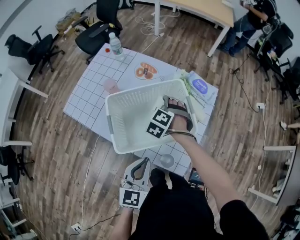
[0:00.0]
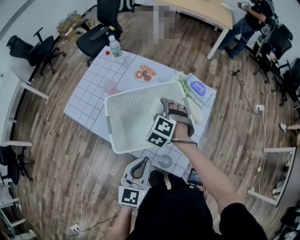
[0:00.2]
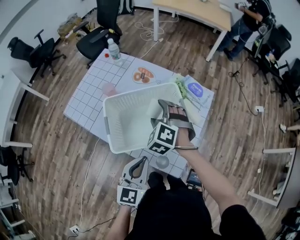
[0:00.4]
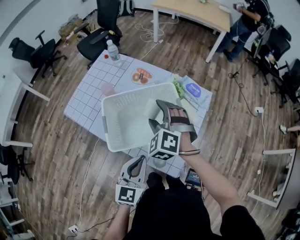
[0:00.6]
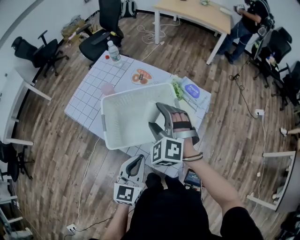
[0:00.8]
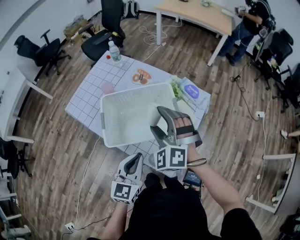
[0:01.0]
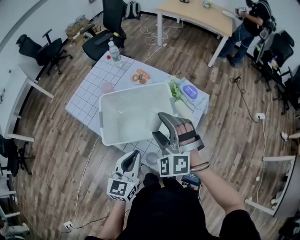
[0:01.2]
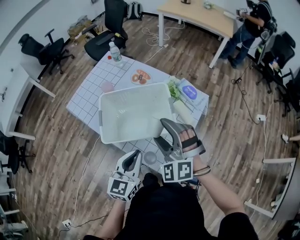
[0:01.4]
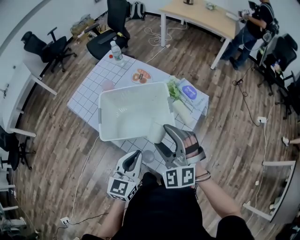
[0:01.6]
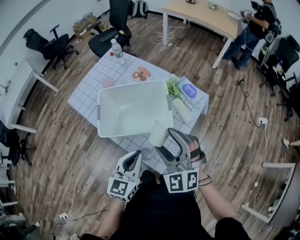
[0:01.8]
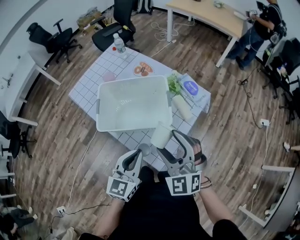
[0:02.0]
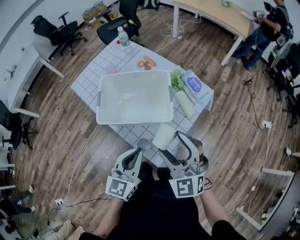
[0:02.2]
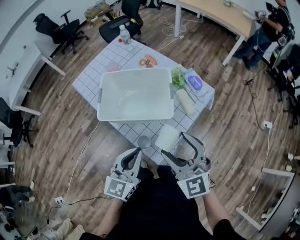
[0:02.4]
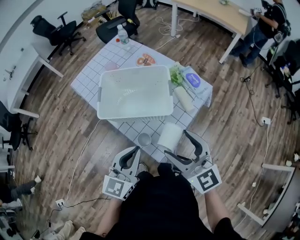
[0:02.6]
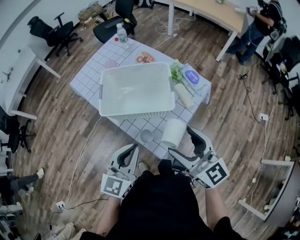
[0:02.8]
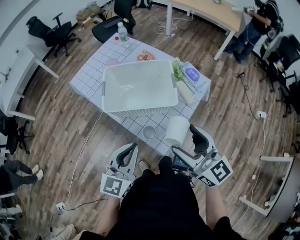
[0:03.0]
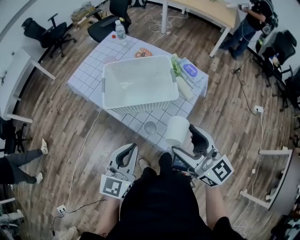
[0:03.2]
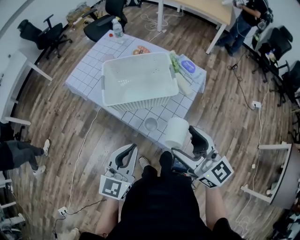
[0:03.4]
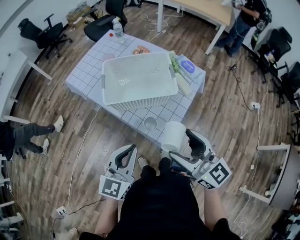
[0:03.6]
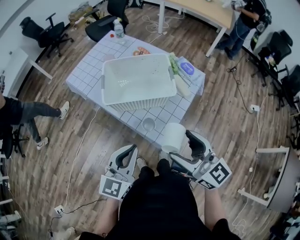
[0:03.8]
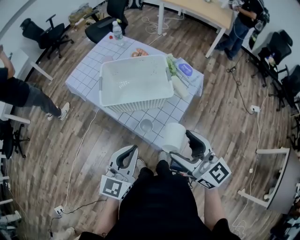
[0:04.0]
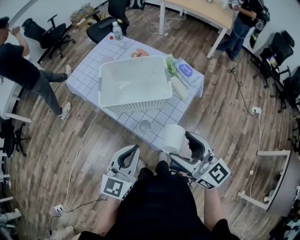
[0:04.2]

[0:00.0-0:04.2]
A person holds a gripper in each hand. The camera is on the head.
0.0 to 1.4 s: The right gripper goes about 25 cm upward and backward, and tilts its fingers about 40 degrees upward; the left gripper moves to the right, roughly 5 cm.
1.4 to 2.8 s: The right gripper is displaced backward and to the right by roughly 15 cm, and twists approximately 60 degrees clockwise, seen from behind. Meanwhile the left gripper shifts approximately 10 cm backward.
2.8 to 4.2 s: The two grippers go roughly 5 cm backward.

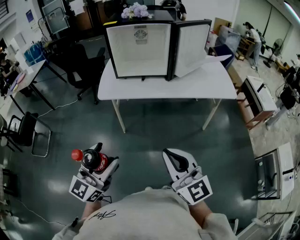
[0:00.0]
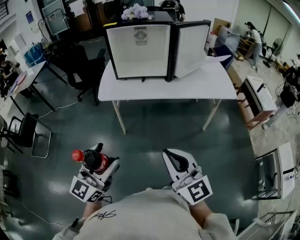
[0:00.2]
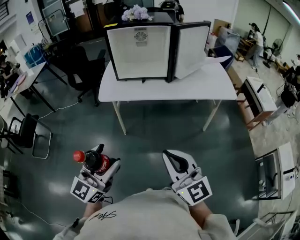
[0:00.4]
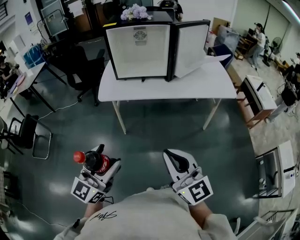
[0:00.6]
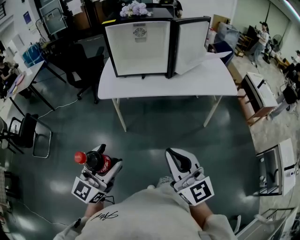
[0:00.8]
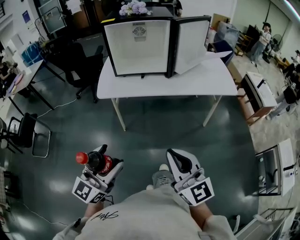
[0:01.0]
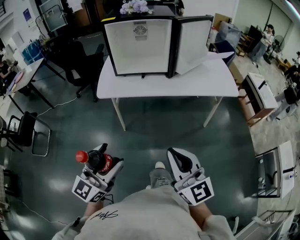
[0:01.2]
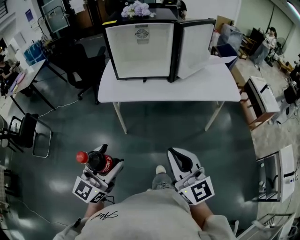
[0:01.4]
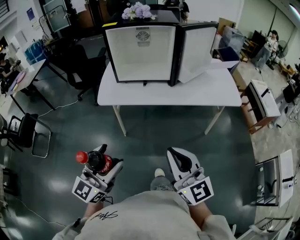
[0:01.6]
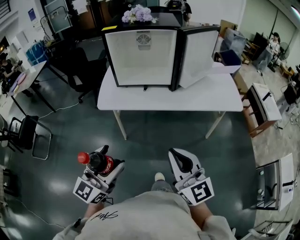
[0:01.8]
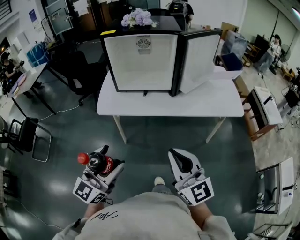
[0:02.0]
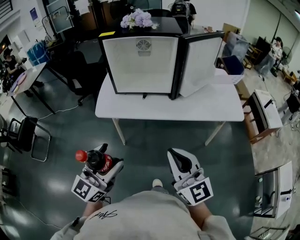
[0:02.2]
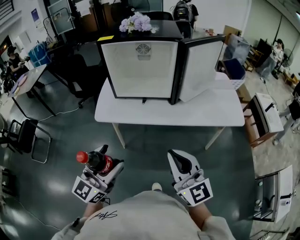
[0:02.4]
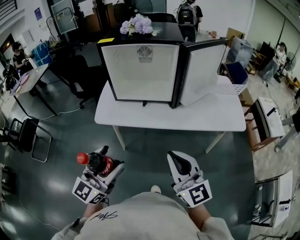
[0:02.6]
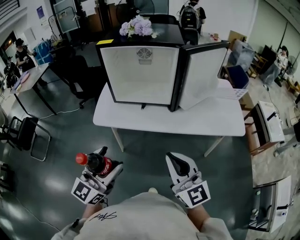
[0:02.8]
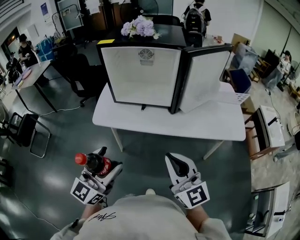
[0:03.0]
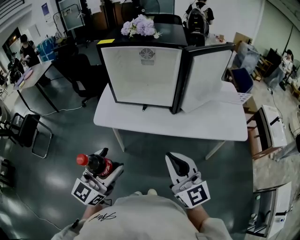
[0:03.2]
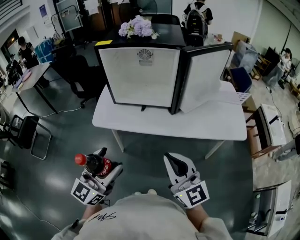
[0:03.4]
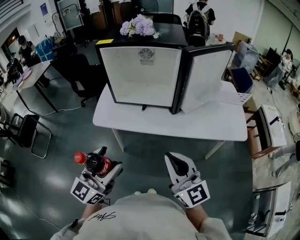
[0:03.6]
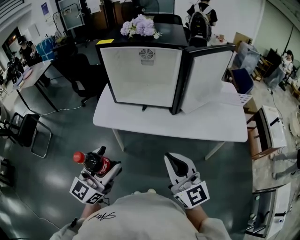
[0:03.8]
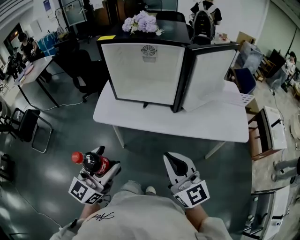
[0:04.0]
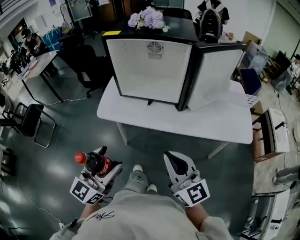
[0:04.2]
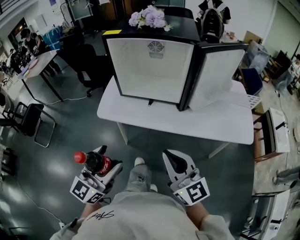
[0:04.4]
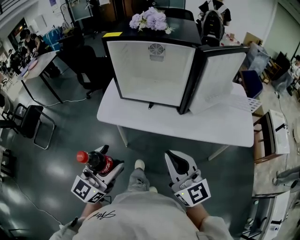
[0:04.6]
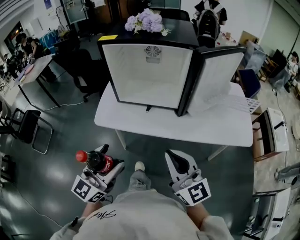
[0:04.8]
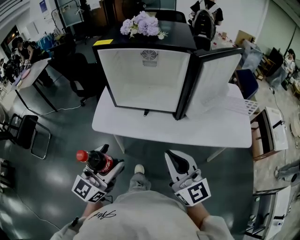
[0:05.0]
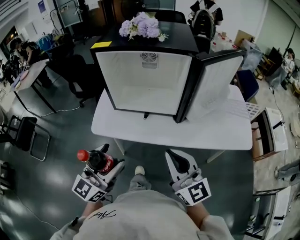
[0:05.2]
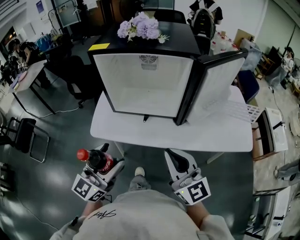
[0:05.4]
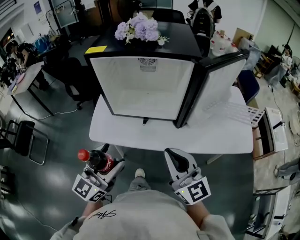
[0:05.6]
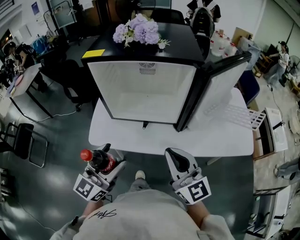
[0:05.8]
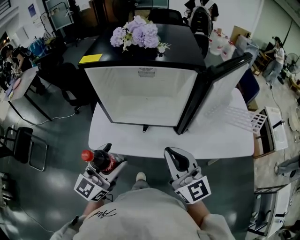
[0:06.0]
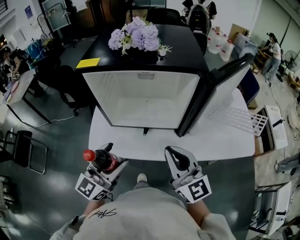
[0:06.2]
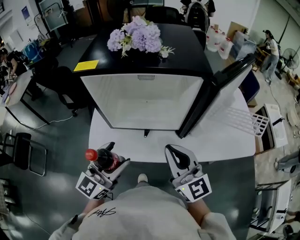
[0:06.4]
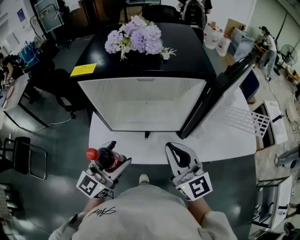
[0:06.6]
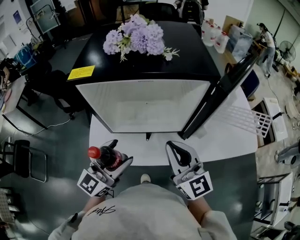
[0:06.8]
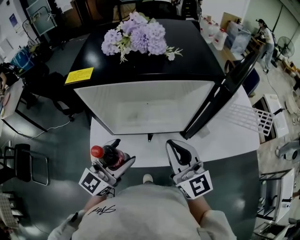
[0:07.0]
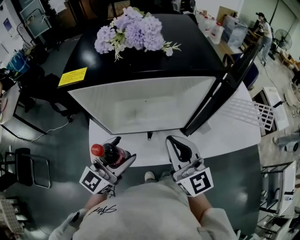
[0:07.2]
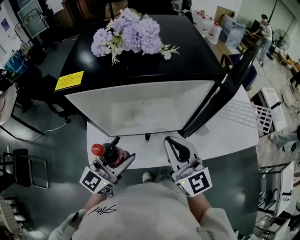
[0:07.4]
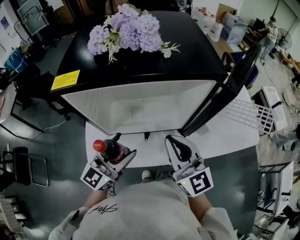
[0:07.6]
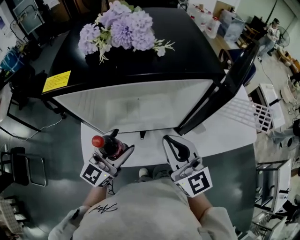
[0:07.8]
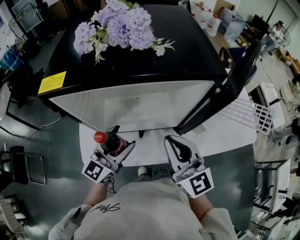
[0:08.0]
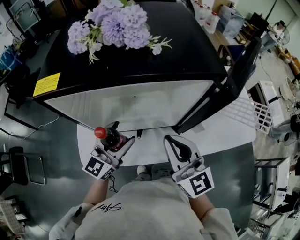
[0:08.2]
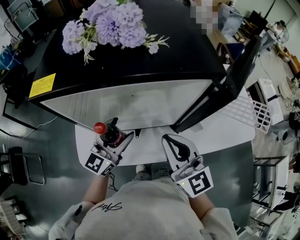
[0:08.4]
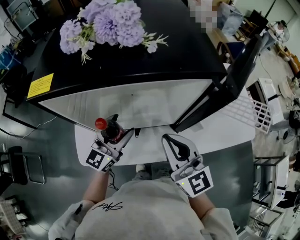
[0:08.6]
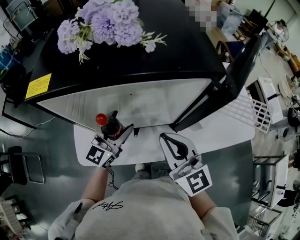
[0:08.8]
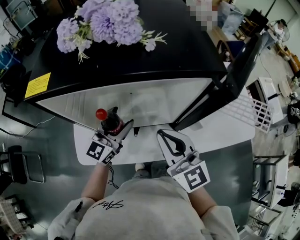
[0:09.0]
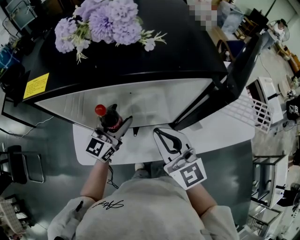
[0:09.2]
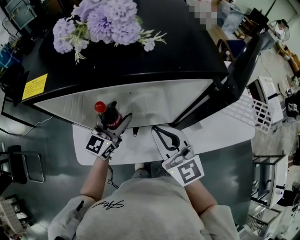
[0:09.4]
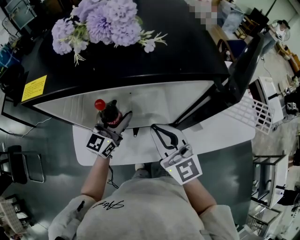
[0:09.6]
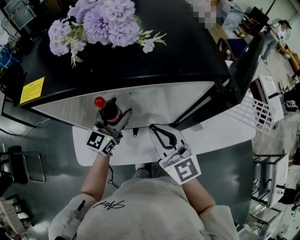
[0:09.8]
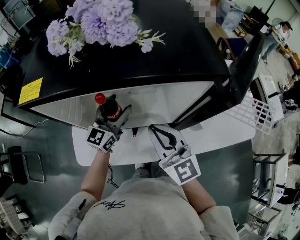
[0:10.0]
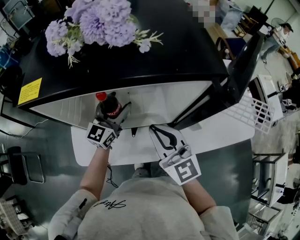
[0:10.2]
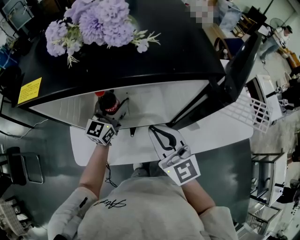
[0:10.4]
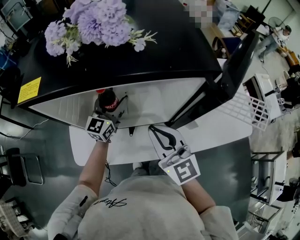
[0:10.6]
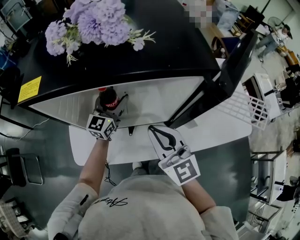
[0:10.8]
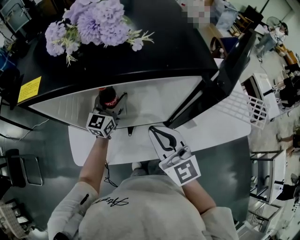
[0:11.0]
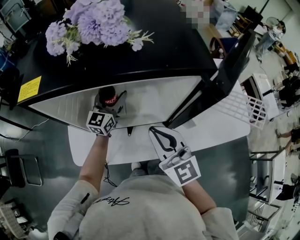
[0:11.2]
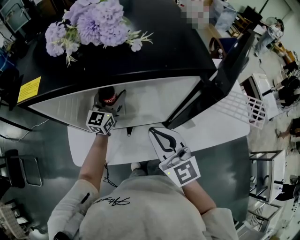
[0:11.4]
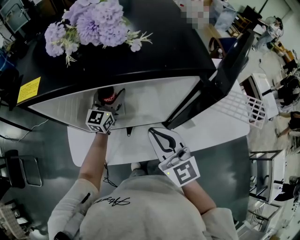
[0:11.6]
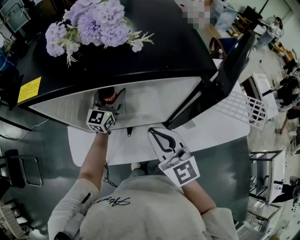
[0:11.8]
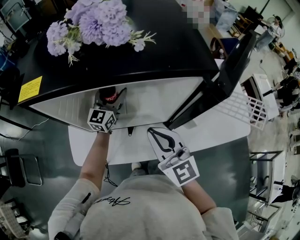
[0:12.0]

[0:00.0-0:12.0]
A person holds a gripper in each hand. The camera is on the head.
0.0 to 1.6 s: The two grippers go approximately 5 cm forward.
1.6 to 3.0 s: The two grippers go roughly 15 cm forward.
3.0 to 4.4 s: The grippers move only a little.
4.4 to 6.0 s: The two grippers go approximately 20 cm forward.
6.0 to 7.6 s: Both grippers move forward, some 15 cm.
7.6 to 9.0 s: The left gripper moves forward and downward, some 15 cm.
9.0 to 10.4 s: The left gripper heads forward, covering roughly 10 cm.
10.4 to 12.0 s: The left gripper shifts by roughly 5 cm.

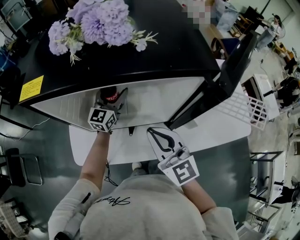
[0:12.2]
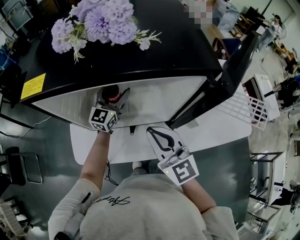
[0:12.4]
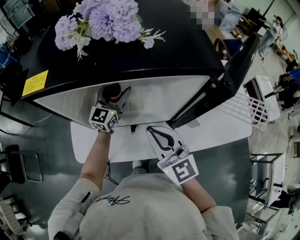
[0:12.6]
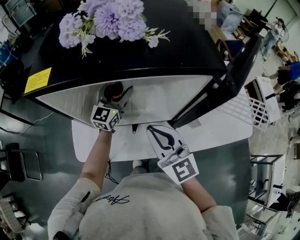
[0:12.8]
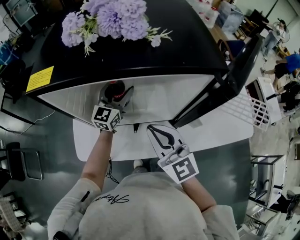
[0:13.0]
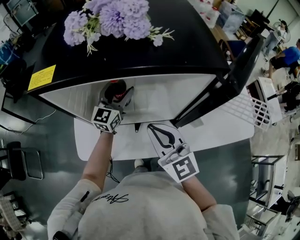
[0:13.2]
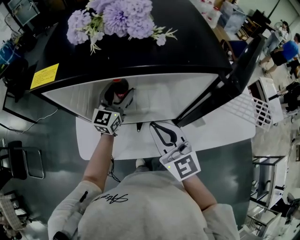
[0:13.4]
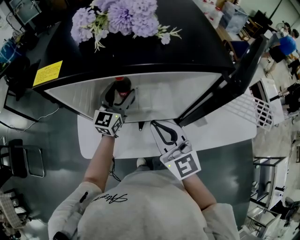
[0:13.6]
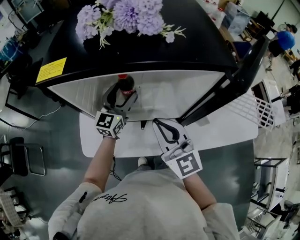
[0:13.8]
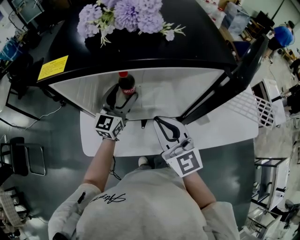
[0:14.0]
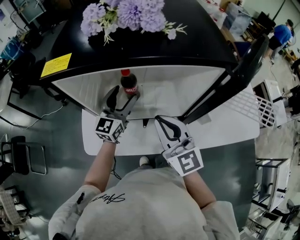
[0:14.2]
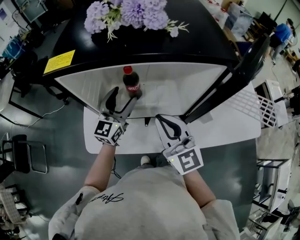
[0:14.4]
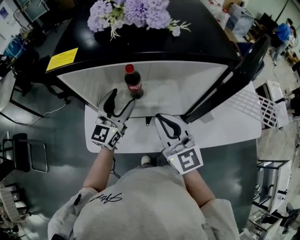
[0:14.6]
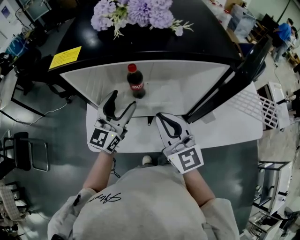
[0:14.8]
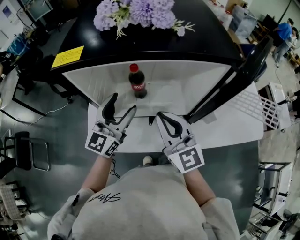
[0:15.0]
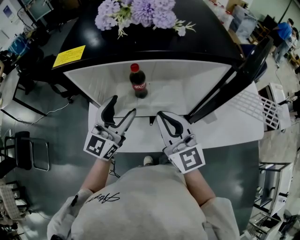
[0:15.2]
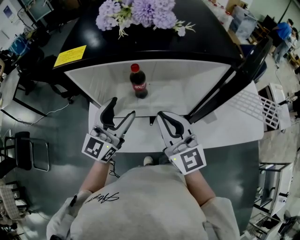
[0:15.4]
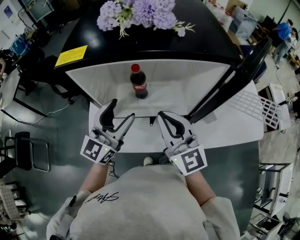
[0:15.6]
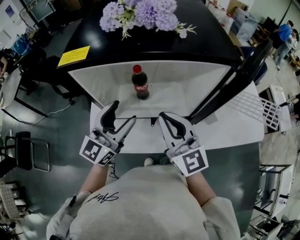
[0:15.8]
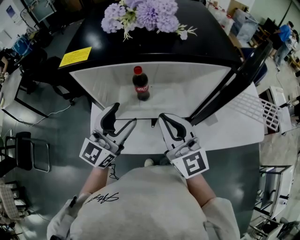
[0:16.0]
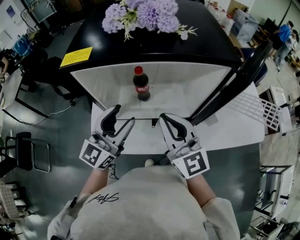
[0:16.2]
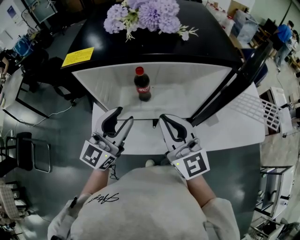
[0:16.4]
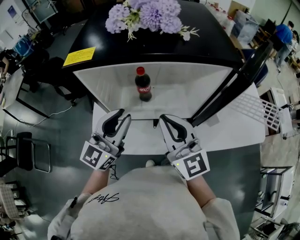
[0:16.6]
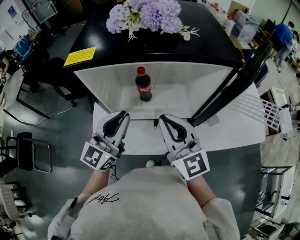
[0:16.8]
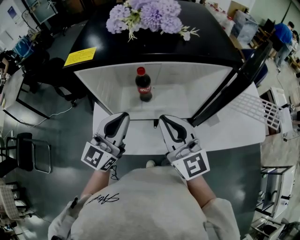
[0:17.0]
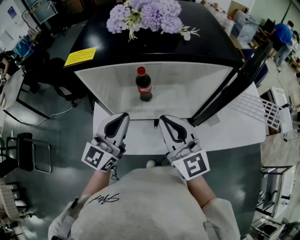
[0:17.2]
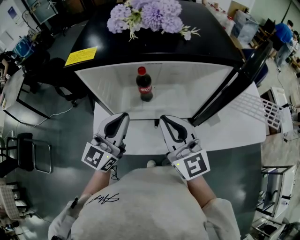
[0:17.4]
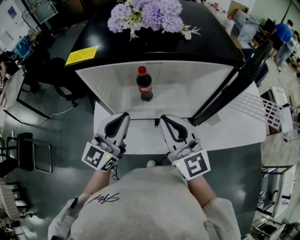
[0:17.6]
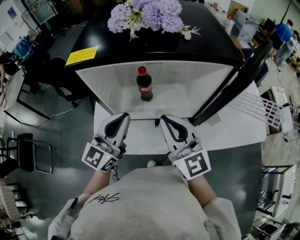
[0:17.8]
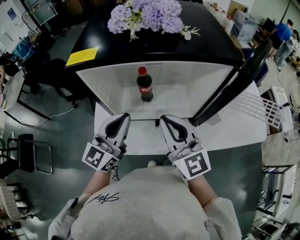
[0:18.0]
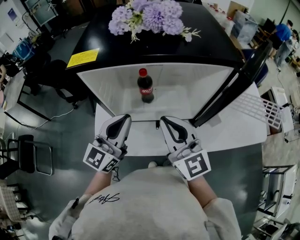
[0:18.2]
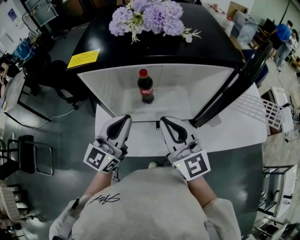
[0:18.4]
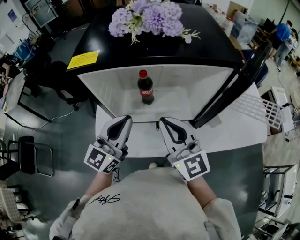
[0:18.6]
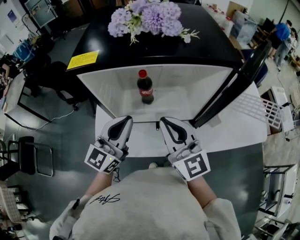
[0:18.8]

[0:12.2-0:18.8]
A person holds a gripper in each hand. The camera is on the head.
12.2 to 13.8 s: The left gripper shifts approximately 5 cm backward.
13.8 to 15.4 s: The left gripper heads backward and upward, covering approximately 15 cm.
15.4 to 17.2 s: The left gripper closes.
17.2 to 18.8 s: Both grippers stay put.

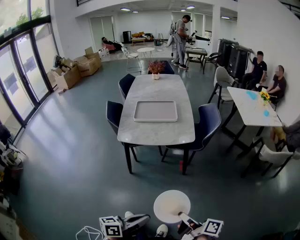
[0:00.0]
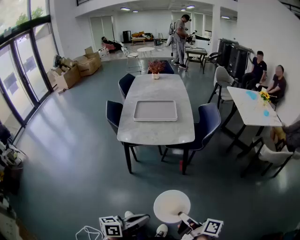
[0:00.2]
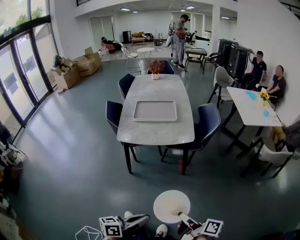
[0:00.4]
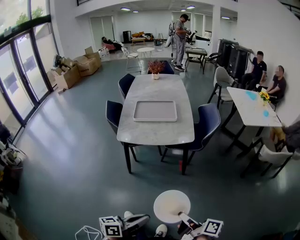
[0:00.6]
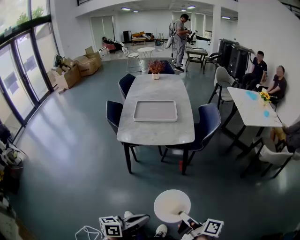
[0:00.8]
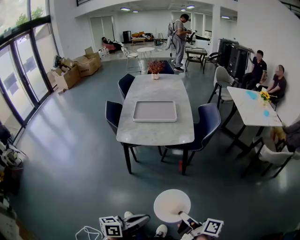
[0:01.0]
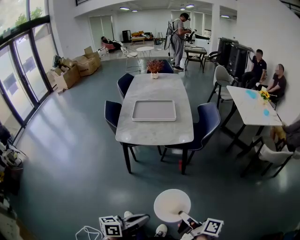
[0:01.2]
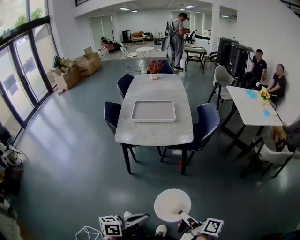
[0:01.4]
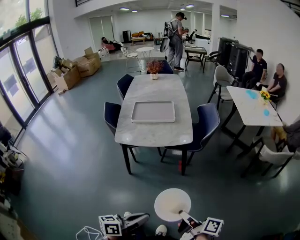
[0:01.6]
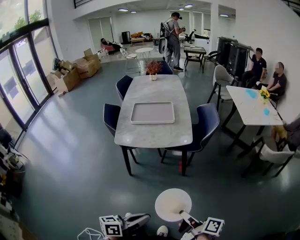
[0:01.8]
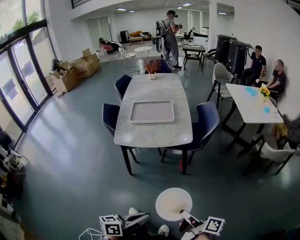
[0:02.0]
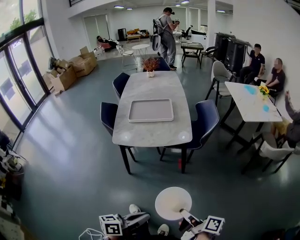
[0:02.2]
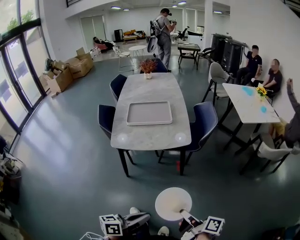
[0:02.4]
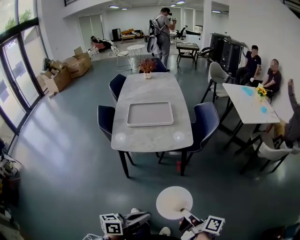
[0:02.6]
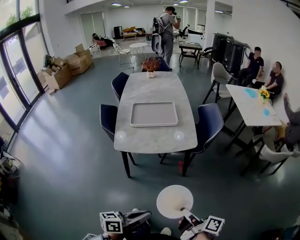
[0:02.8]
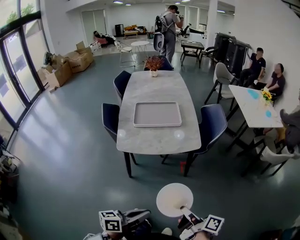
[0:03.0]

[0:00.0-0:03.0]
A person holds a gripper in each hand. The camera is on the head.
1.6 to 3.0 s: The left gripper moves roughly 15 cm.
